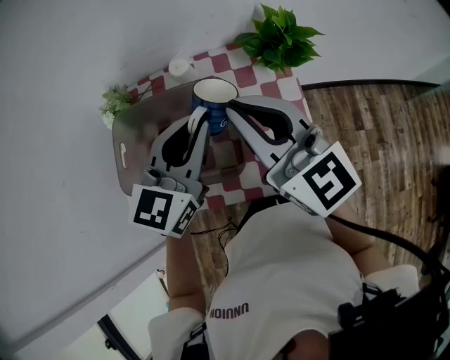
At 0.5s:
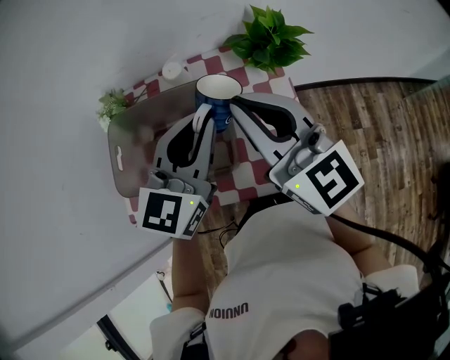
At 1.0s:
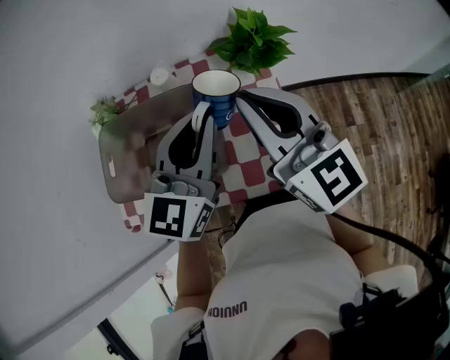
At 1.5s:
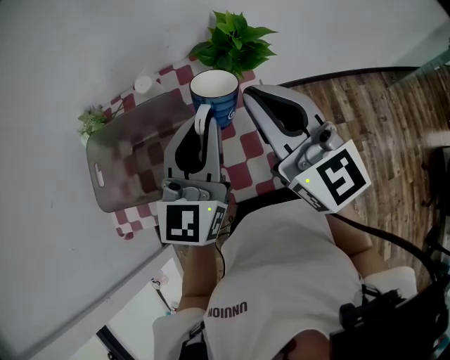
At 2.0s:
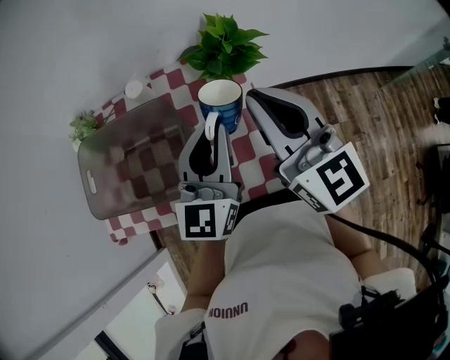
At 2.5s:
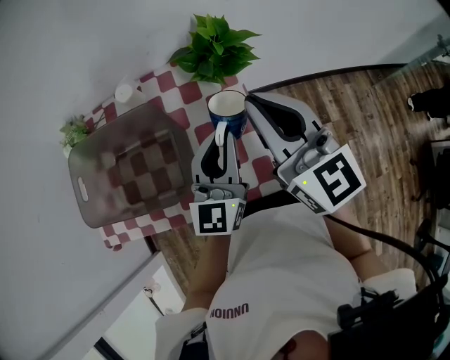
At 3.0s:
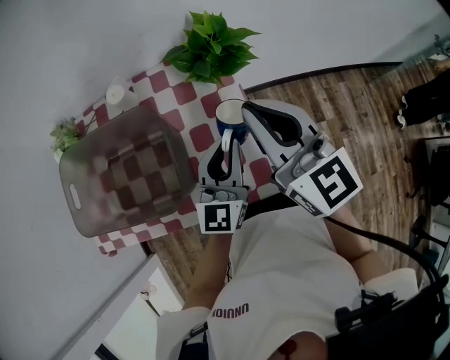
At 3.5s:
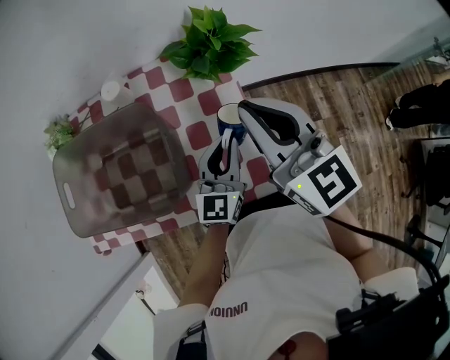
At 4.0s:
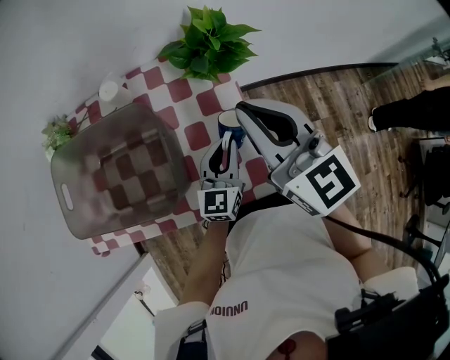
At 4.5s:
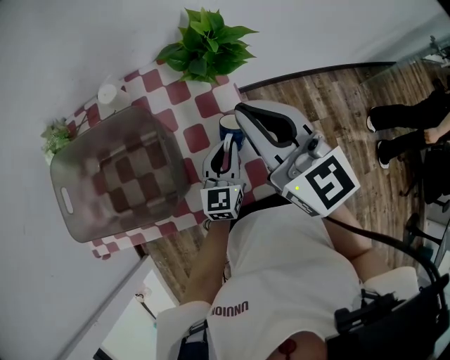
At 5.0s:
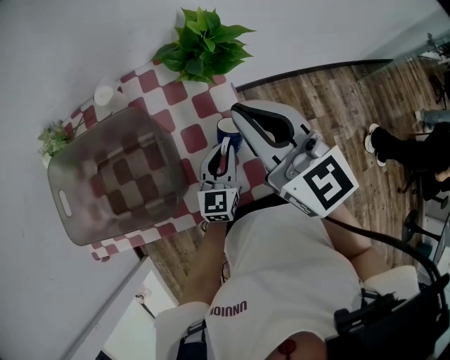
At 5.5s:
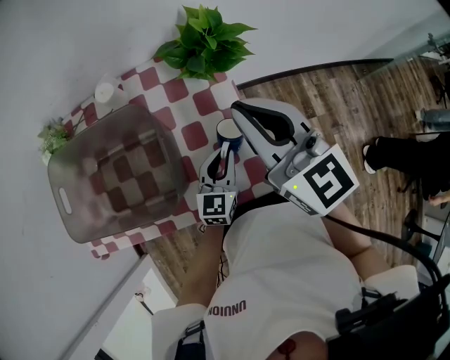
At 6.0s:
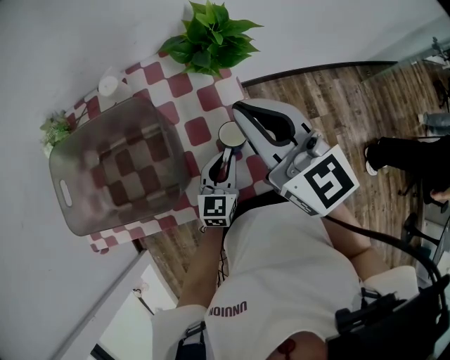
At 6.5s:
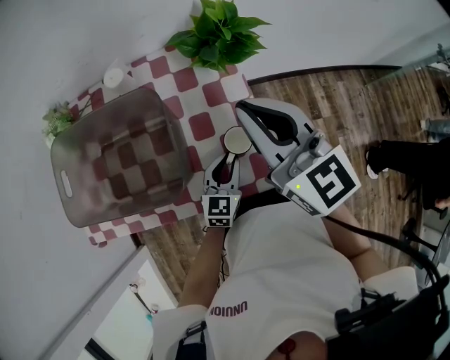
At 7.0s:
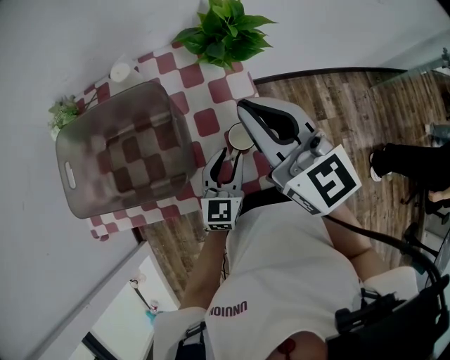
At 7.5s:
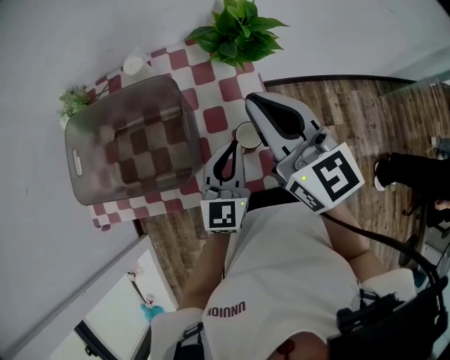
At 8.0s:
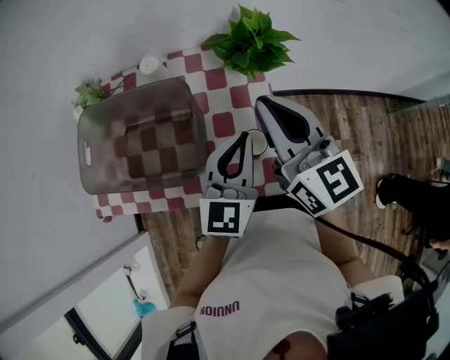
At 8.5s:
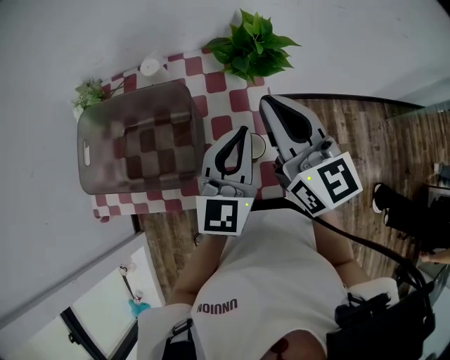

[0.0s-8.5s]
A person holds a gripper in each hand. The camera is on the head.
0.0s to 2.0s: The two grippers go about 15 cm to the right.
2.0s to 4.0s: The left gripper goes about 20 cm downward, while the right gripper shifts approximately 5 cm downward.
4.0s to 6.5s: The left gripper shifts roughly 10 cm downward and backward.
6.5s to 8.5s: The left gripper travels upward by about 25 cm, and turns by roughly 20 degrees.

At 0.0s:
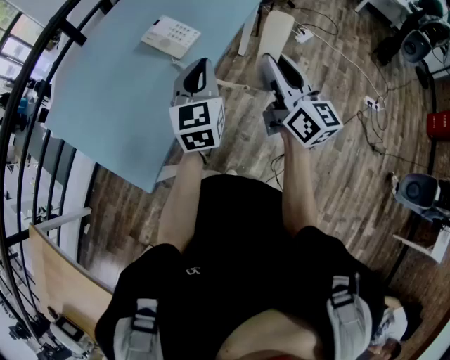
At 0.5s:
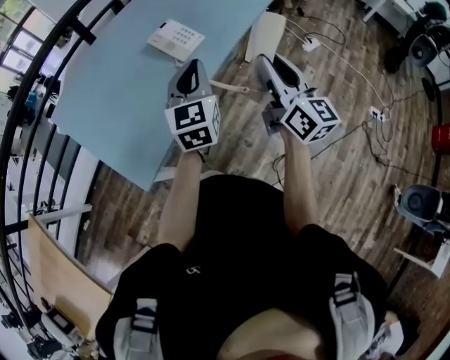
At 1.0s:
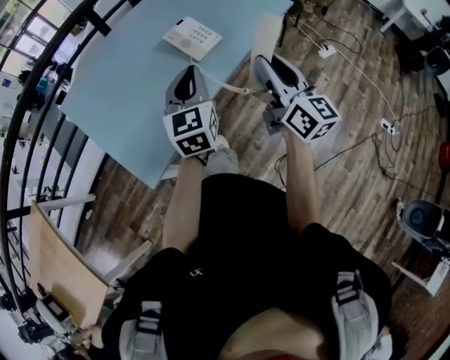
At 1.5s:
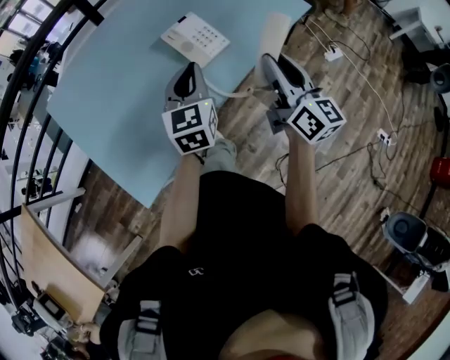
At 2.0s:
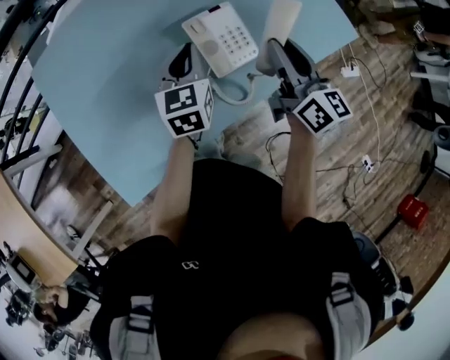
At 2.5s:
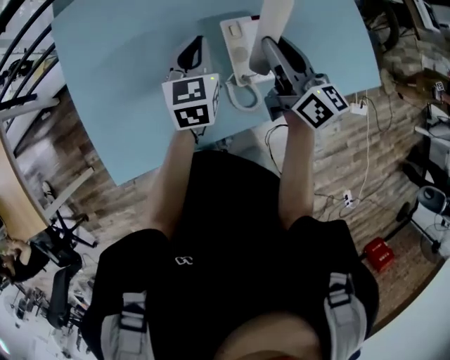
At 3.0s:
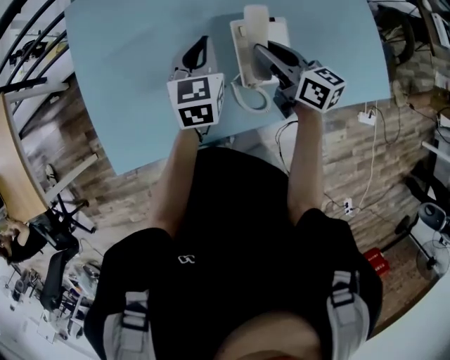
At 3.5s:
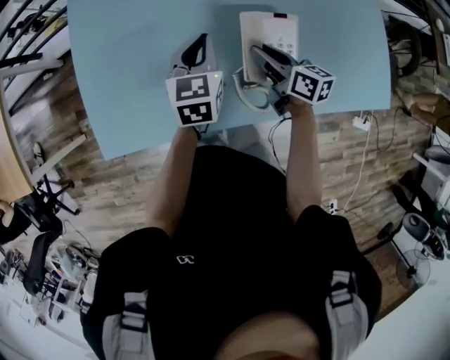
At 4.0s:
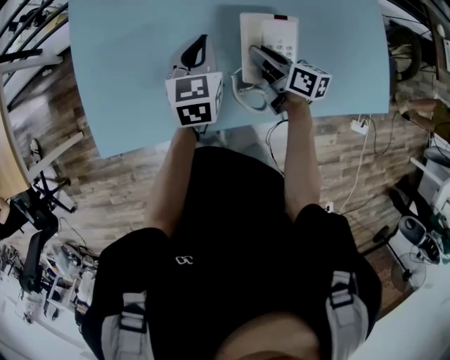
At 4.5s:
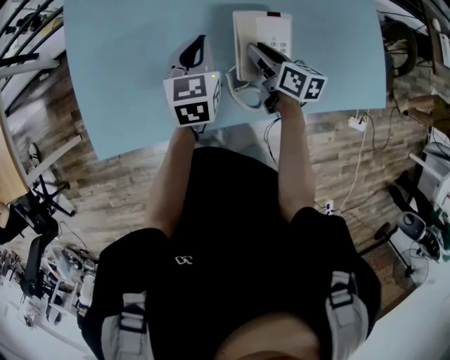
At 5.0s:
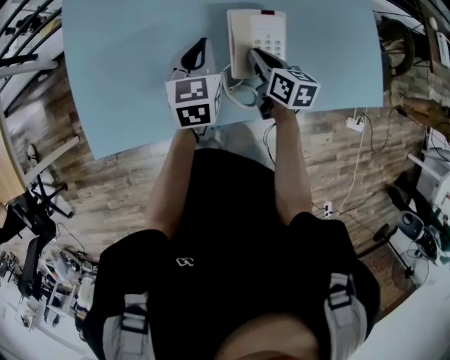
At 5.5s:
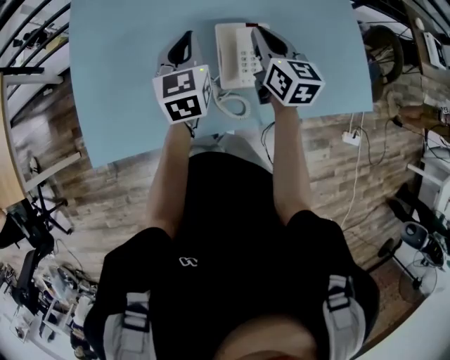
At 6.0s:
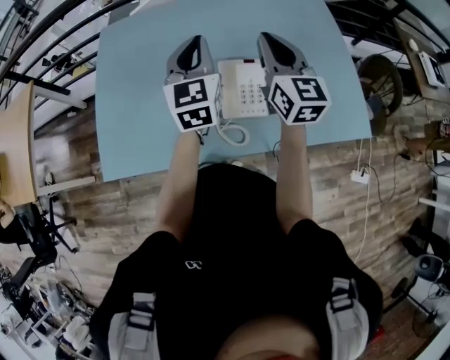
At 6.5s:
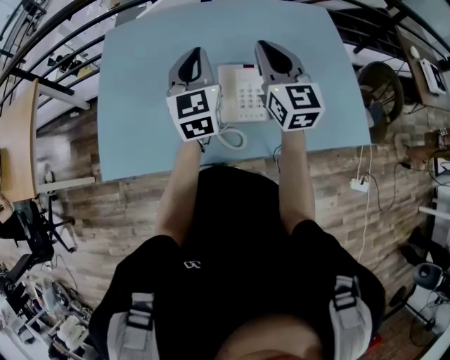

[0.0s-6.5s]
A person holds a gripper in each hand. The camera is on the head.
0.0s to 2.0s: The right gripper ends up about 40 cm from where it was, and swivels about 30 degrees. The left gripper shifts by roughly 40 cm, and swivels about 30 degrees.
2.0s to 4.5s: The left gripper ends up about 10 cm from where it was, and turns by about 20 degrees, while the right gripper moves downward, roughly 20 cm, and swivels about 40 degrees.
4.5s to 6.5s: The two grippers go approximately 25 cm upward. The left gripper turns by approximately 30 degrees; the right gripper rotates around the line of its fingers by approximately 40 degrees, counterclockwise from behind, and closes its fingers.

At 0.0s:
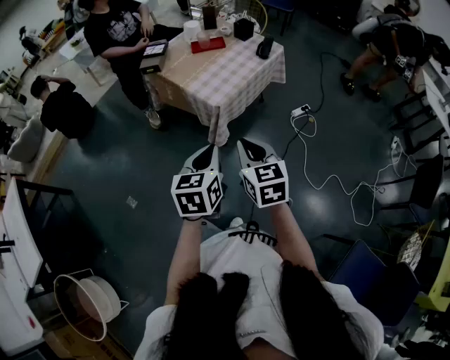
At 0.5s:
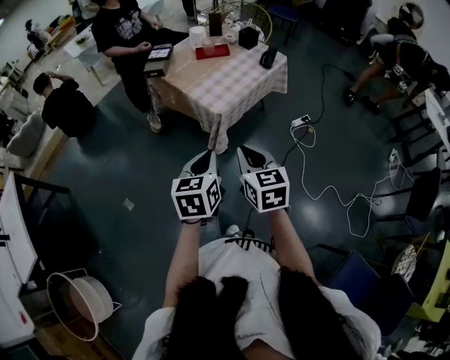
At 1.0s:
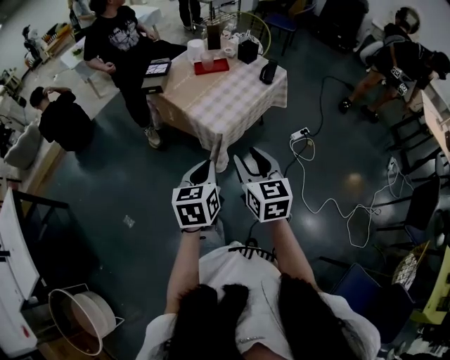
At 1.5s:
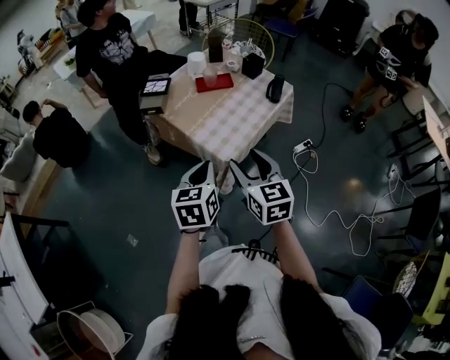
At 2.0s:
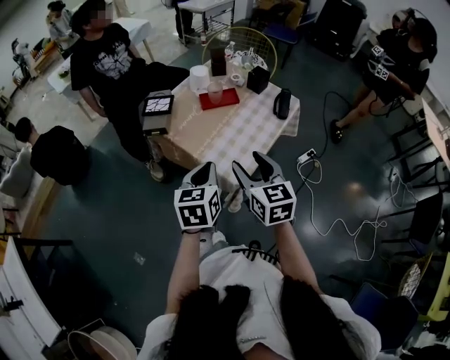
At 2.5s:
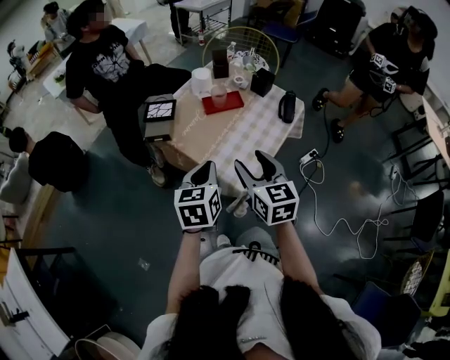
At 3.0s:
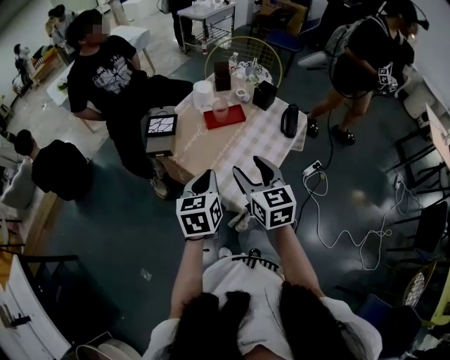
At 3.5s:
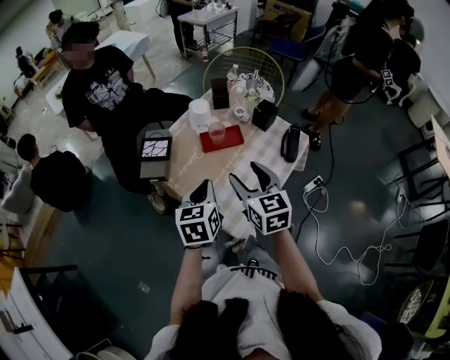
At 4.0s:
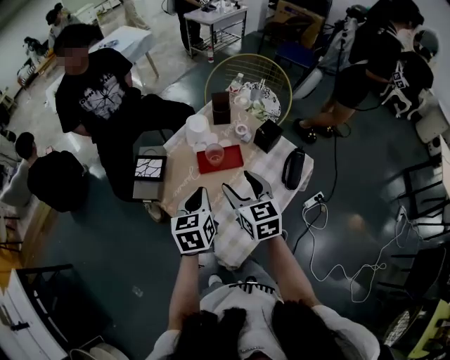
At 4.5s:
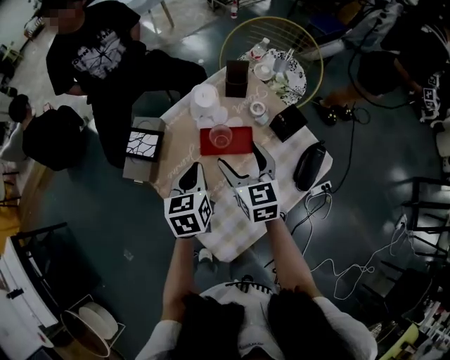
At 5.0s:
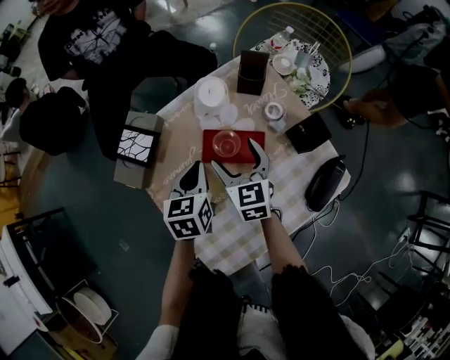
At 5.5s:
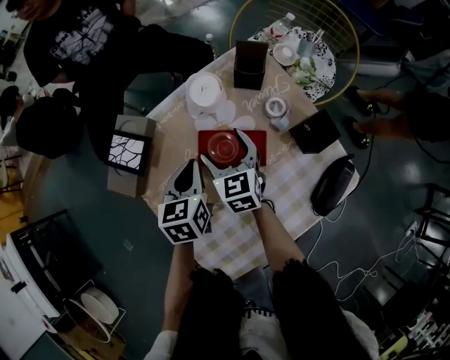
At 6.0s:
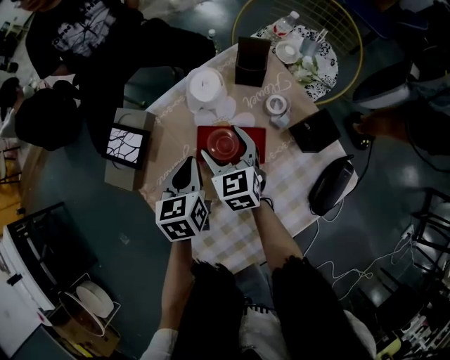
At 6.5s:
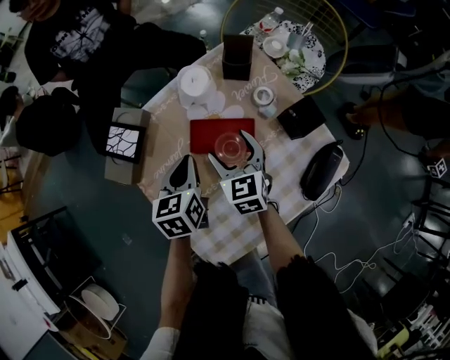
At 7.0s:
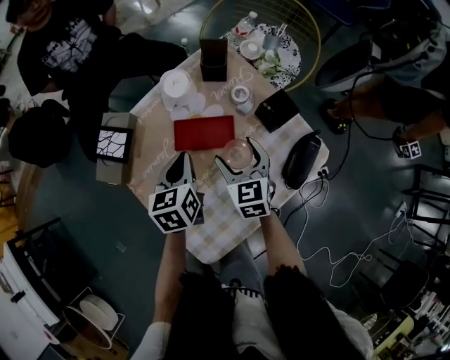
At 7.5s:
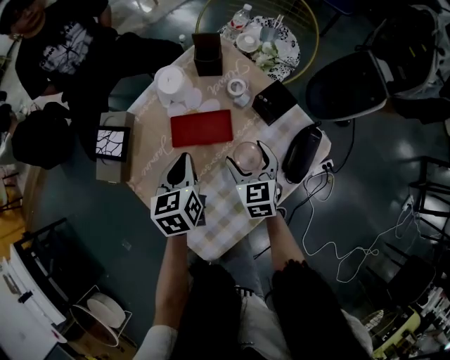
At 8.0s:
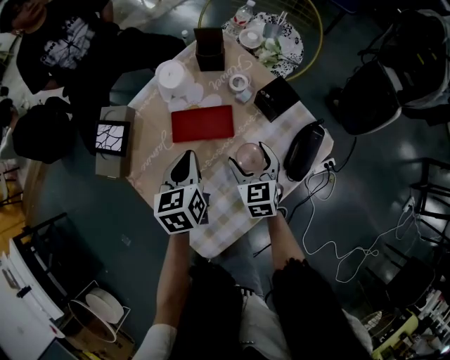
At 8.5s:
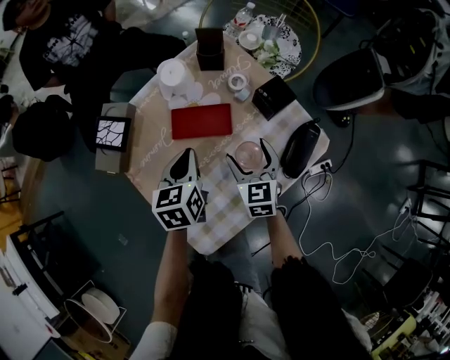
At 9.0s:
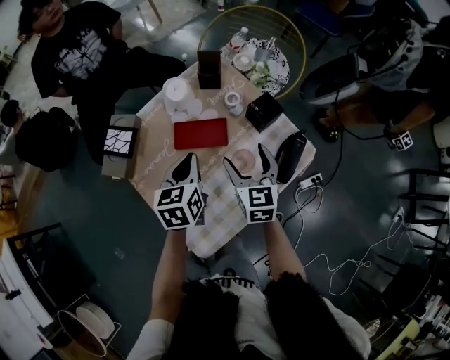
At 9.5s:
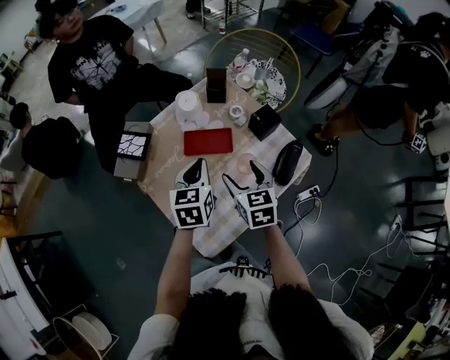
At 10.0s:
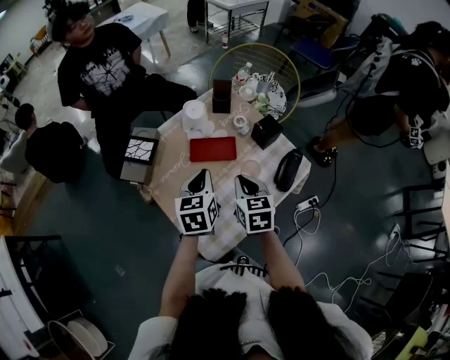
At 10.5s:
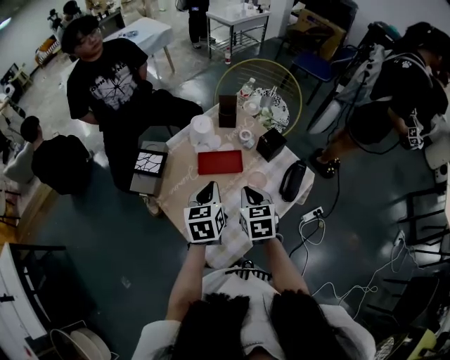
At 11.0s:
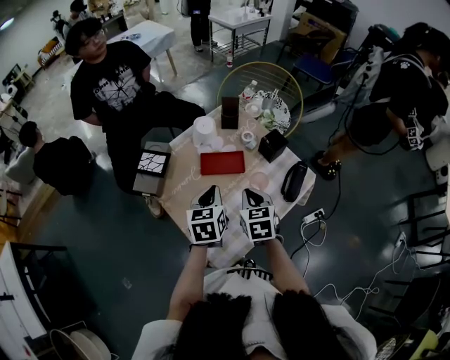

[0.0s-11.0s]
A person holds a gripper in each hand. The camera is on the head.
0.0s to 2.0s: The grippers both shift forward by approximately 30 cm. The right gripper opens.
2.0s to 3.5s: Both grippers move forward, roughly 20 cm.
3.5s to 5.5s: Both grippers travel together forward and downward, some 35 cm. The left gripper changes its angle by roughly 20 degrees; the right gripper swivels roughly 20 degrees, and opens its fingers.
5.5s to 7.5s: The right gripper is displaced to the right and backward by about 20 cm. The left gripper moves to the right and backward, roughly 10 cm.
7.5s to 9.0s: The left gripper shifts about 5 cm upward. The right gripper moves upward, about 10 cm.
9.0s to 11.0s: The right gripper heads backward and to the left, covering roughly 10 cm, and closes up, while the left gripper moves backward, about 5 cm.

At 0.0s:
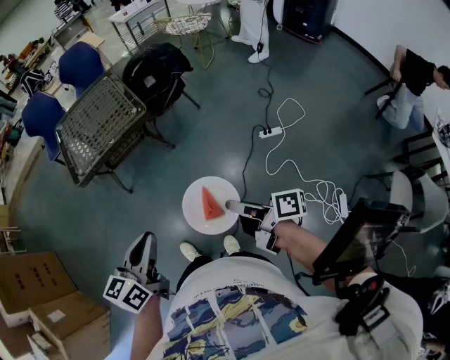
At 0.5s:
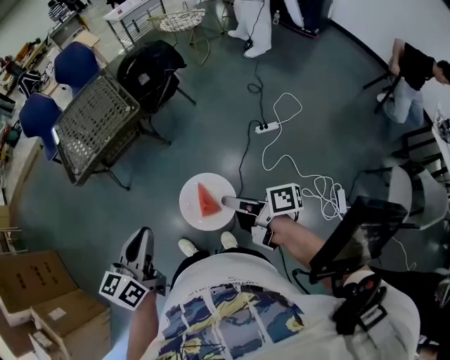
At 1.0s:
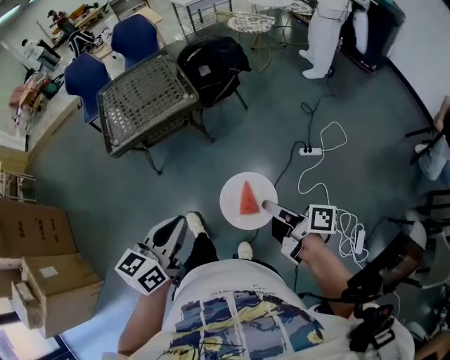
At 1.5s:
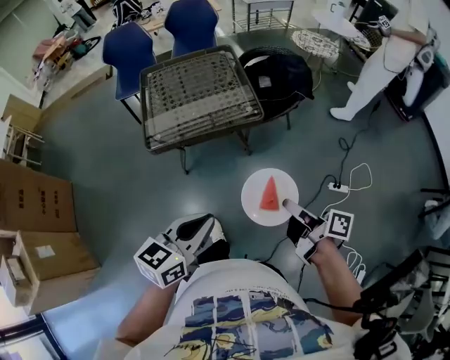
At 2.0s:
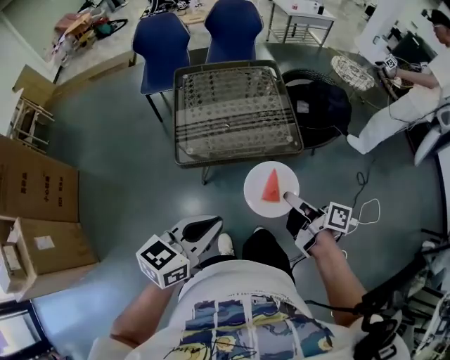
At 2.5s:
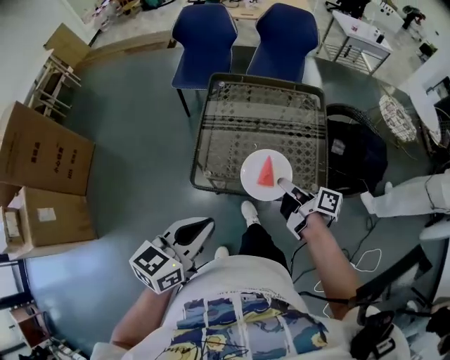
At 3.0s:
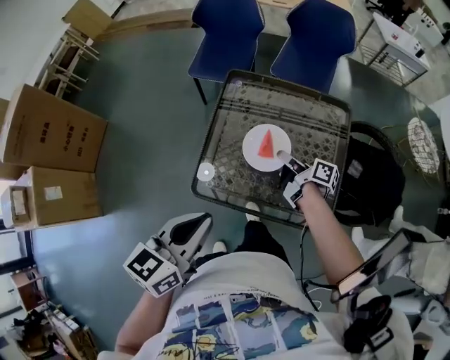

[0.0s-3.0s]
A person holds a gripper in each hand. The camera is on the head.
0.0s to 1.5s: The two grippers go some 25 cm forward and to the left.
1.5s to 3.0s: Both grippers are carried roughly 60 cm. The right gripper rotates about 30 degrees, while the left gripper changes its angle by approximately 30 degrees.
